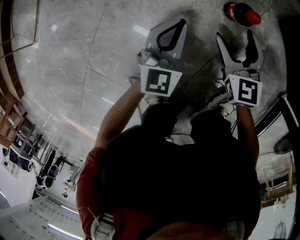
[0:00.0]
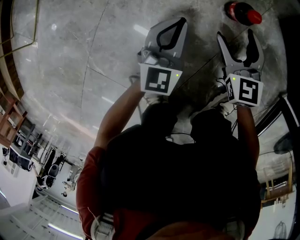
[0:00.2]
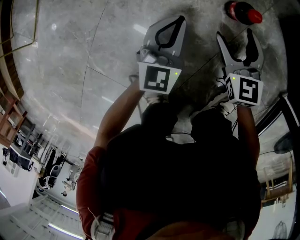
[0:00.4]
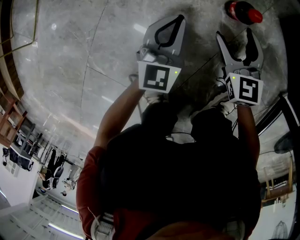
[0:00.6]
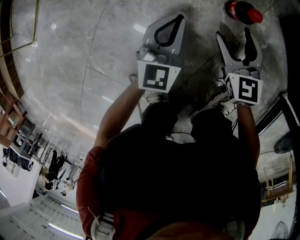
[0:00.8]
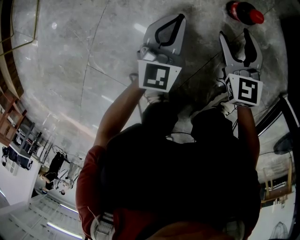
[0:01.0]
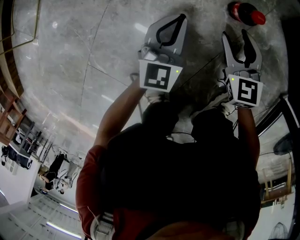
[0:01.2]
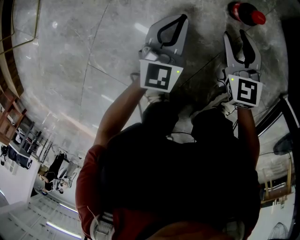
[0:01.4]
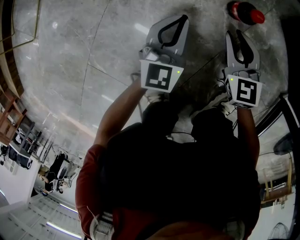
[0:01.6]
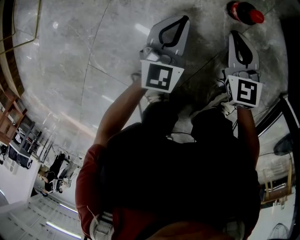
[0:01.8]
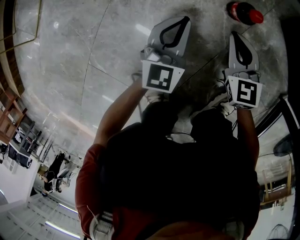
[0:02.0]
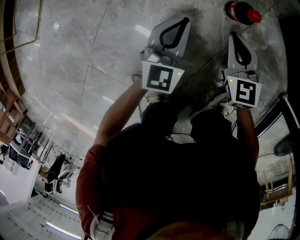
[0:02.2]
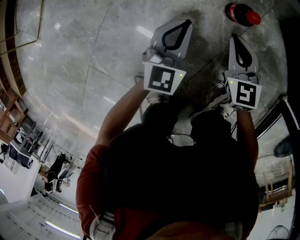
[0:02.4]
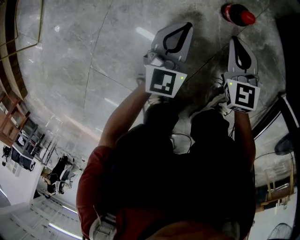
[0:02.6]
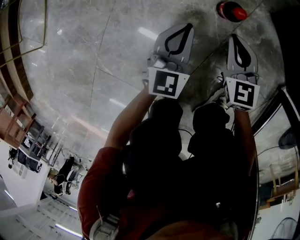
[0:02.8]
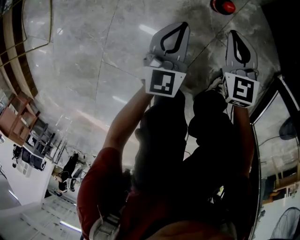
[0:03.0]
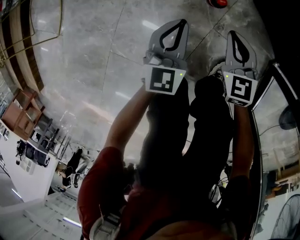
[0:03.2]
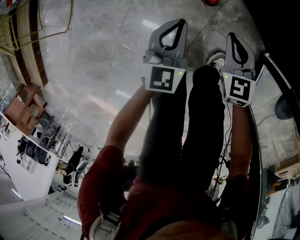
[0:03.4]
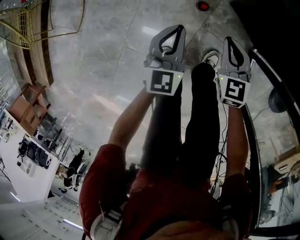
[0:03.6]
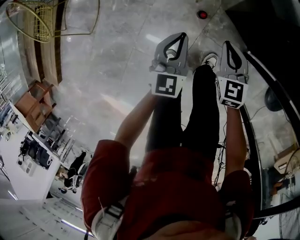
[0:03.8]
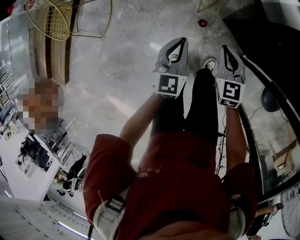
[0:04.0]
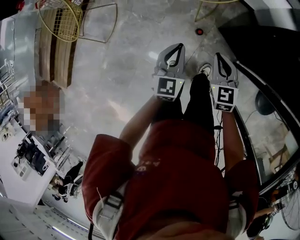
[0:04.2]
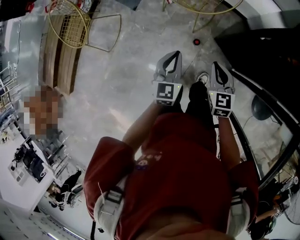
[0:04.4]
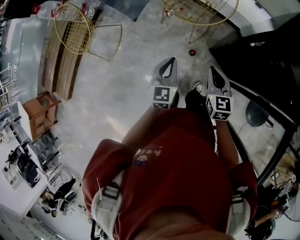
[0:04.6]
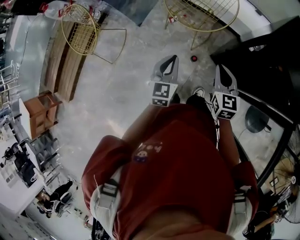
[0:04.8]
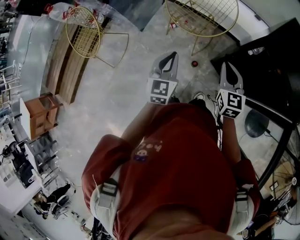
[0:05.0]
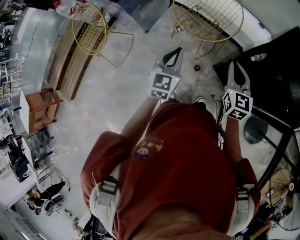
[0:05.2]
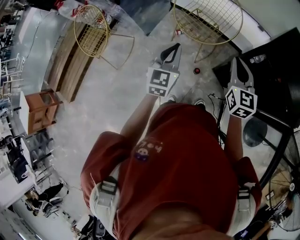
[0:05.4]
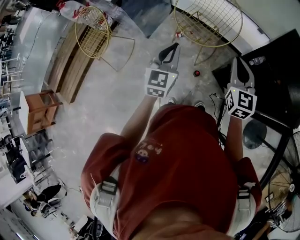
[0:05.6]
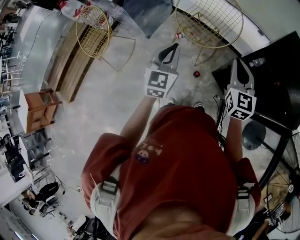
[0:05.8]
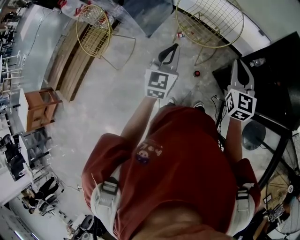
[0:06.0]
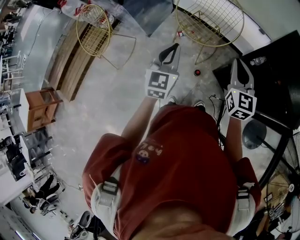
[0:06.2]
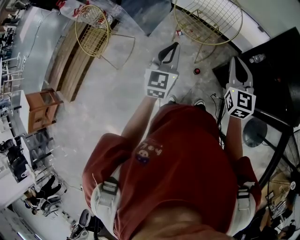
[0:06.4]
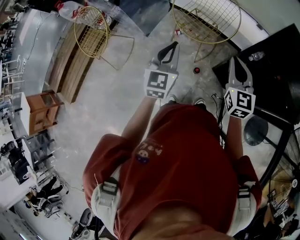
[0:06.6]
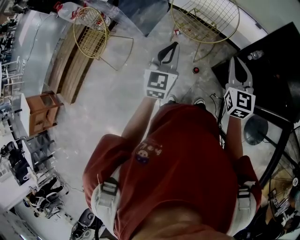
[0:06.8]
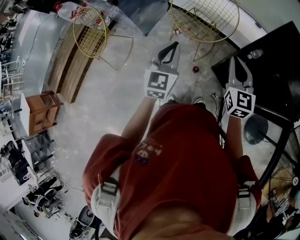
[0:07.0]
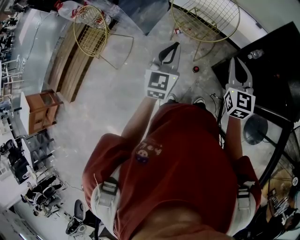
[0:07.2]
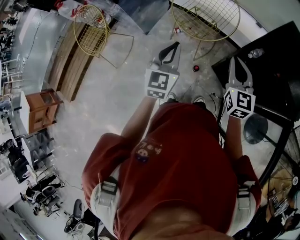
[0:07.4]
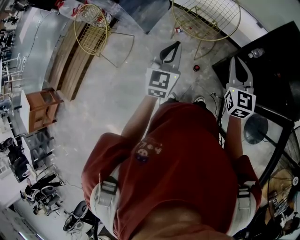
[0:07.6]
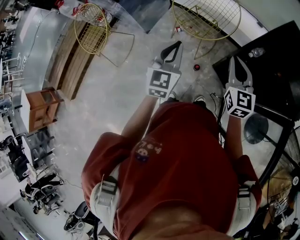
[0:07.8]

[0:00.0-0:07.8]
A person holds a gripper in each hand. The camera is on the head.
0:00.0 to 0:01.6: The right gripper closes up.
0:01.6 to 0:03.2: Both grippers move upward, some 20 cm.
0:03.2 to 0:04.6: Both grippers move upward, roughly 60 cm.
0:04.6 to 0:06.2: The two grippers go roughly 15 cm upward.
0:06.2 to 0:07.8: The grippers stay close to where they were, moving slightly.

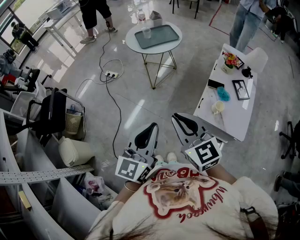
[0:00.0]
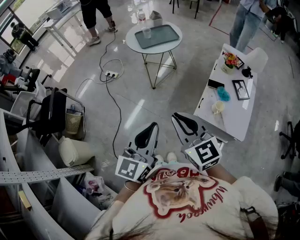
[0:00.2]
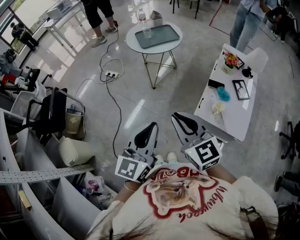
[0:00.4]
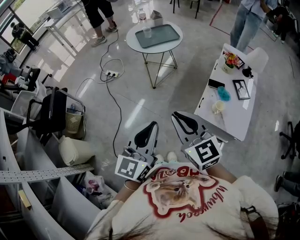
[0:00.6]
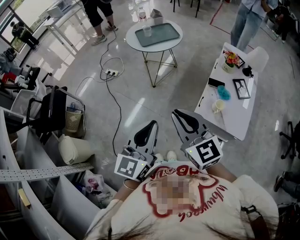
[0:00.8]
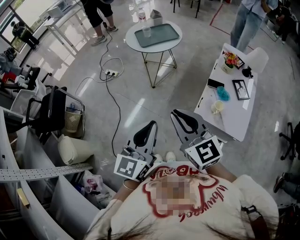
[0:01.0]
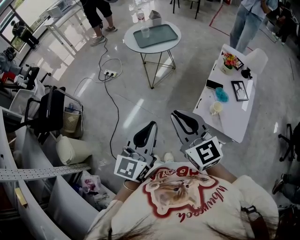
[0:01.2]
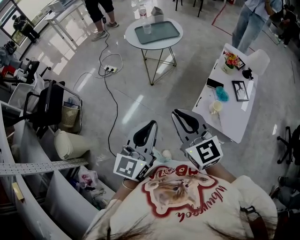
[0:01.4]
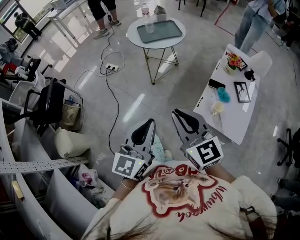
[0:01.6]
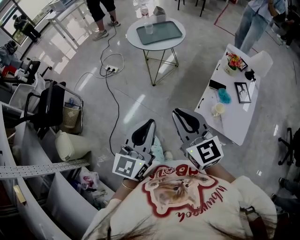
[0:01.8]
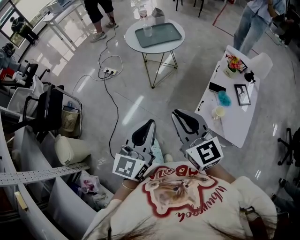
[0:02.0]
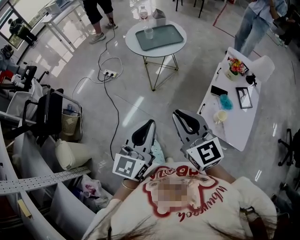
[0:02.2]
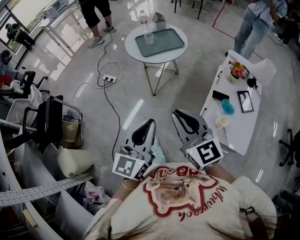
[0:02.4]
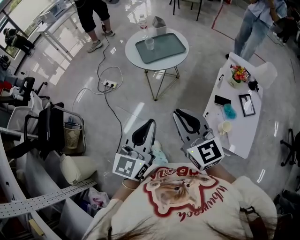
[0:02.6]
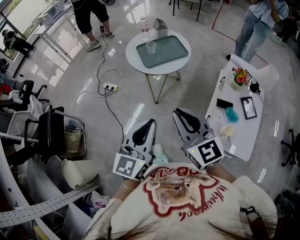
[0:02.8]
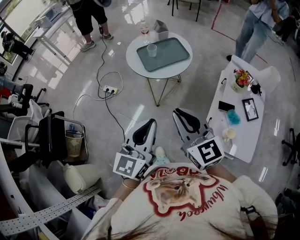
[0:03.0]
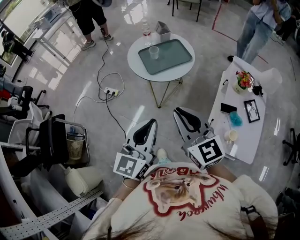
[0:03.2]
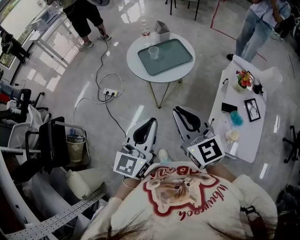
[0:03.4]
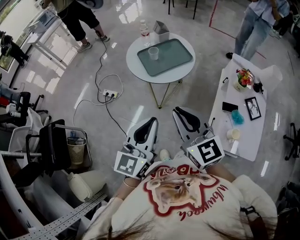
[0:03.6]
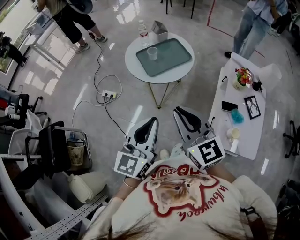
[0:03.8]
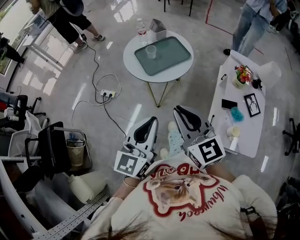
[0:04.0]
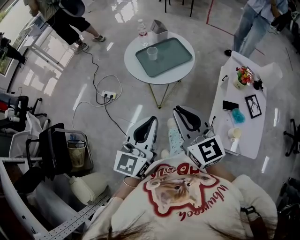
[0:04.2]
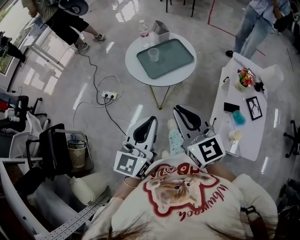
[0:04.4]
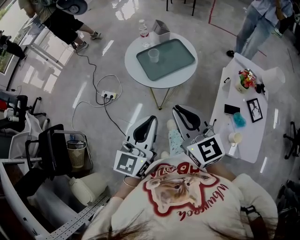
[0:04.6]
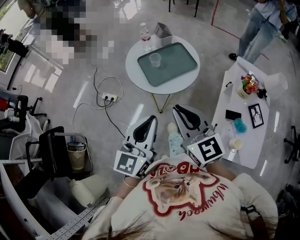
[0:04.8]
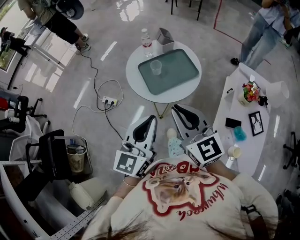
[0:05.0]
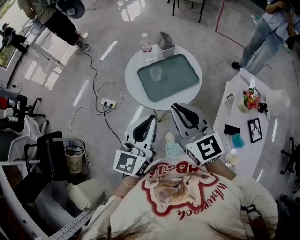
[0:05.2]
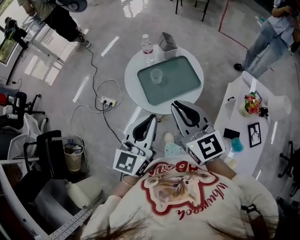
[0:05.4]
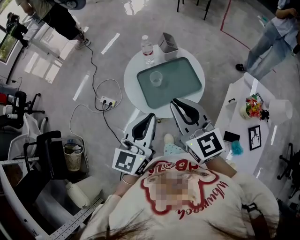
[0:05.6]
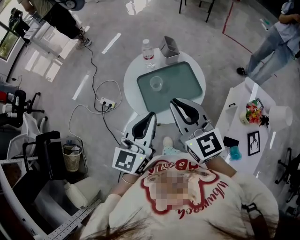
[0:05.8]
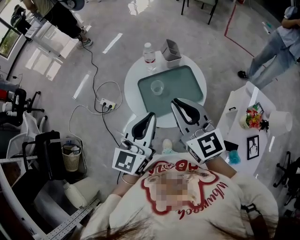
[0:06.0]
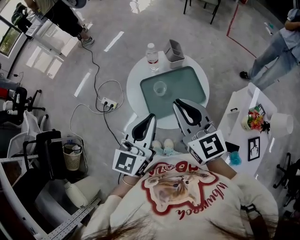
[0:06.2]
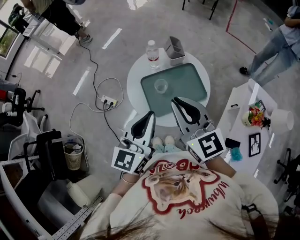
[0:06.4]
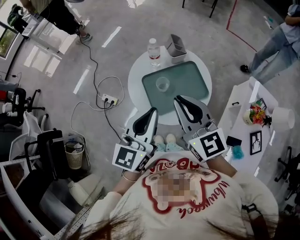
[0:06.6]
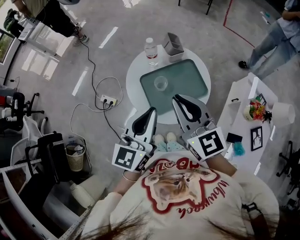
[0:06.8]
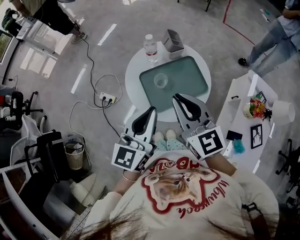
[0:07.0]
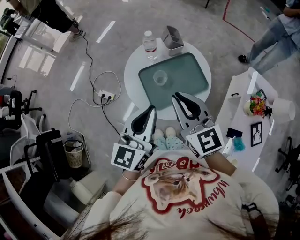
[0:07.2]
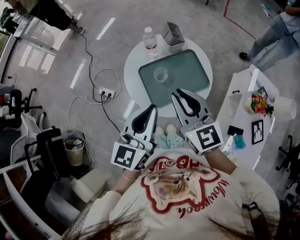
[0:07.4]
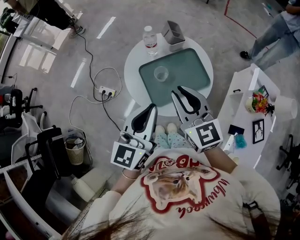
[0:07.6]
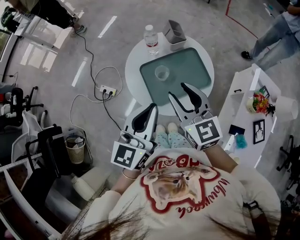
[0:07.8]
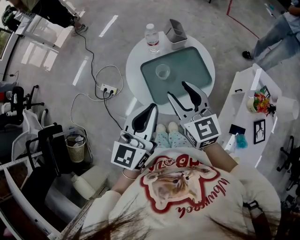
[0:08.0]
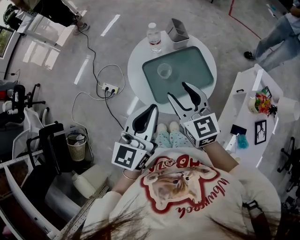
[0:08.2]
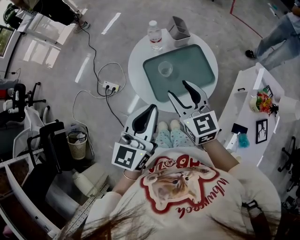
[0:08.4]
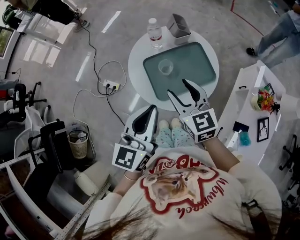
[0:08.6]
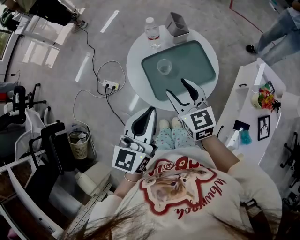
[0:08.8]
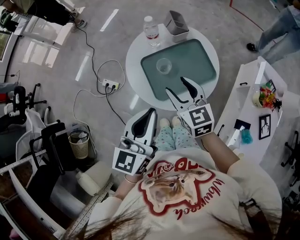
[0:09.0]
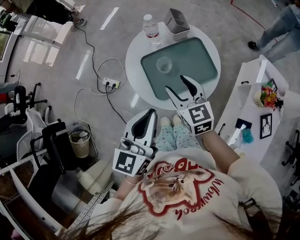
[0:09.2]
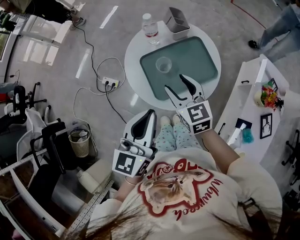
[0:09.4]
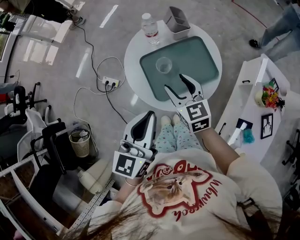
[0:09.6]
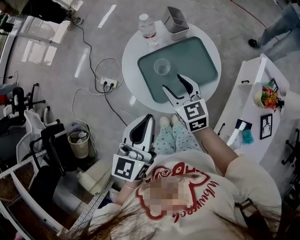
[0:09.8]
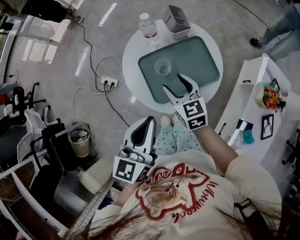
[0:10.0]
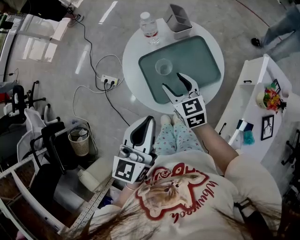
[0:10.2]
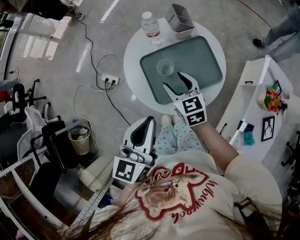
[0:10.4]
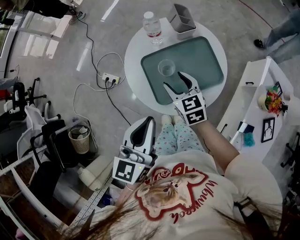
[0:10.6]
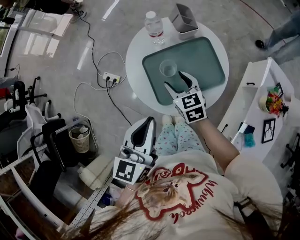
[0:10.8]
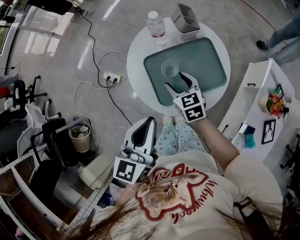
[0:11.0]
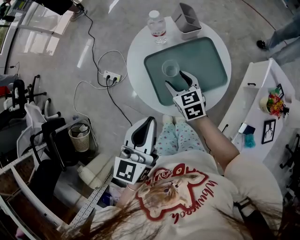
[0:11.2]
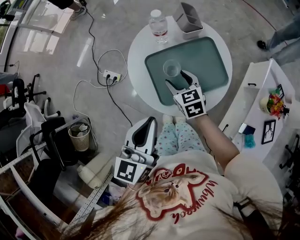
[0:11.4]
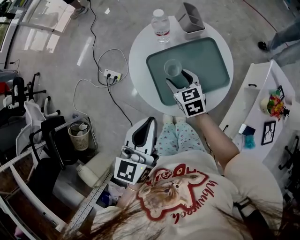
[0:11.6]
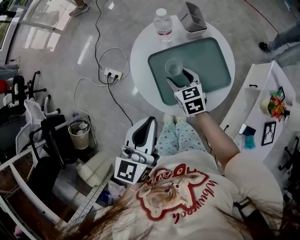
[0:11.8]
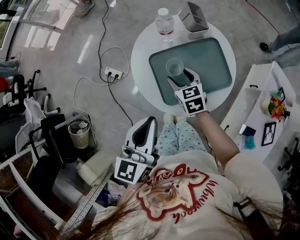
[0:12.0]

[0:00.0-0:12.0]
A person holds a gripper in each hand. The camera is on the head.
0:00.0 to 0:01.6: There are only small adjustments of the grippers.
0:01.6 to 0:03.0: Both grippers travel together forward, approximately 25 cm.
0:03.0 to 0:04.4: The grippers both shift forward by roughly 10 cm.
0:04.4 to 0:06.0: Both grippers move forward, roughly 25 cm.
0:06.0 to 0:07.6: The right gripper shifts roughly 5 cm downward.
0:07.6 to 0:09.0: The right gripper travels downward by approximately 10 cm, and opens up.
0:09.0 to 0:10.4: The right gripper moves downward, roughly 10 cm.
0:10.4 to 0:12.0: The right gripper heads downward, covering roughly 5 cm.

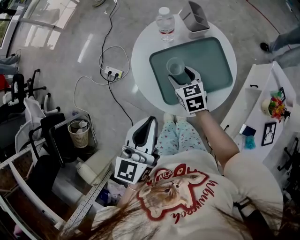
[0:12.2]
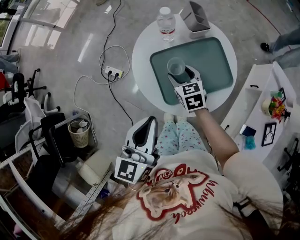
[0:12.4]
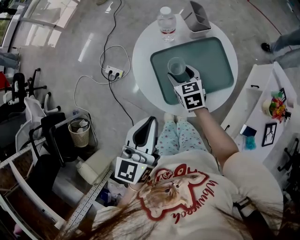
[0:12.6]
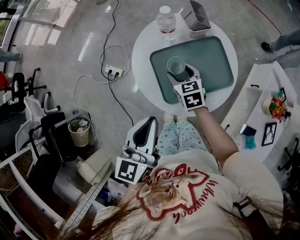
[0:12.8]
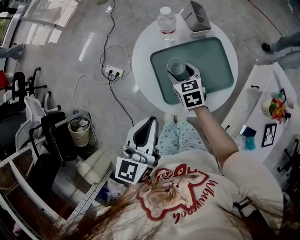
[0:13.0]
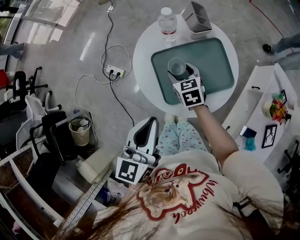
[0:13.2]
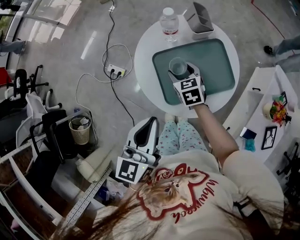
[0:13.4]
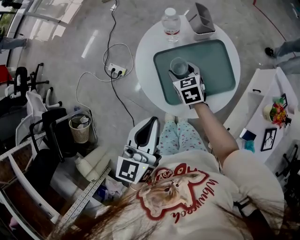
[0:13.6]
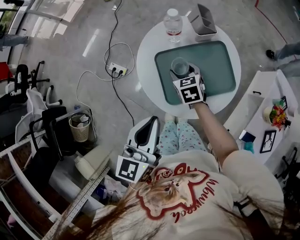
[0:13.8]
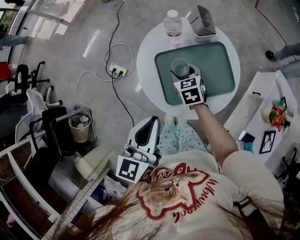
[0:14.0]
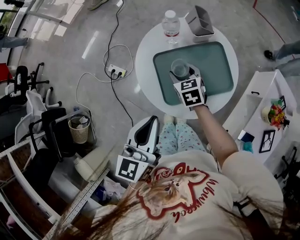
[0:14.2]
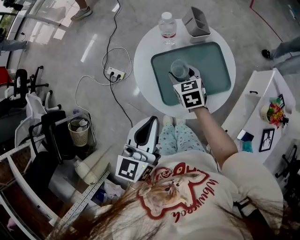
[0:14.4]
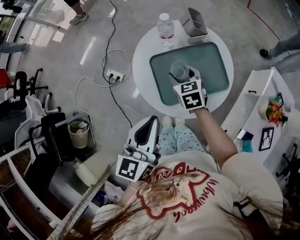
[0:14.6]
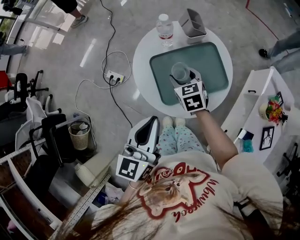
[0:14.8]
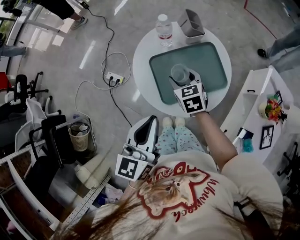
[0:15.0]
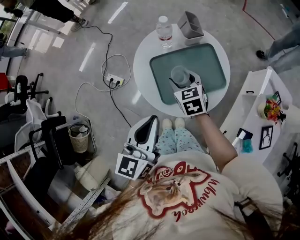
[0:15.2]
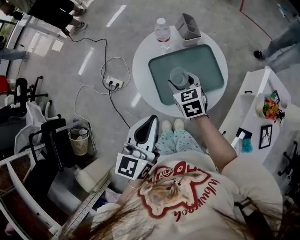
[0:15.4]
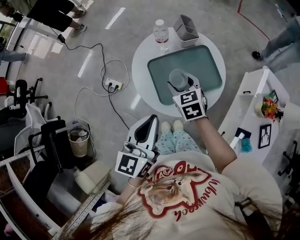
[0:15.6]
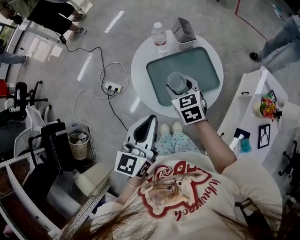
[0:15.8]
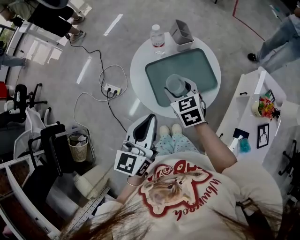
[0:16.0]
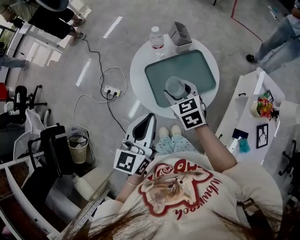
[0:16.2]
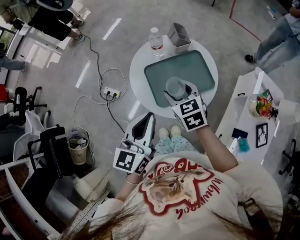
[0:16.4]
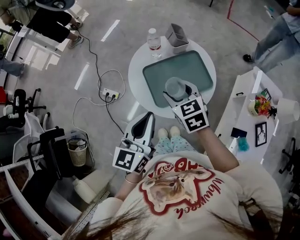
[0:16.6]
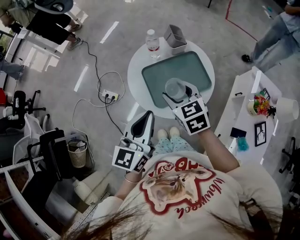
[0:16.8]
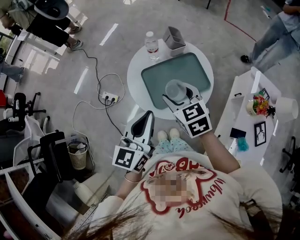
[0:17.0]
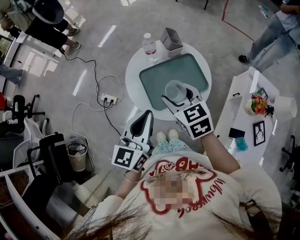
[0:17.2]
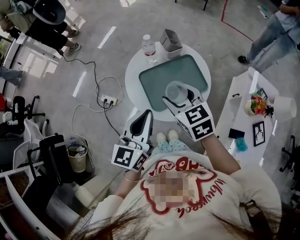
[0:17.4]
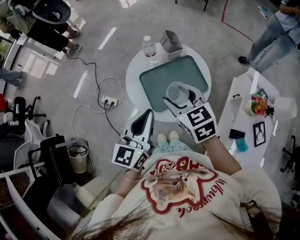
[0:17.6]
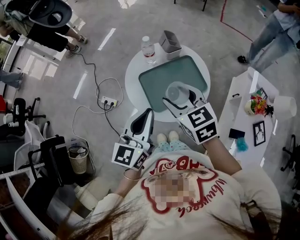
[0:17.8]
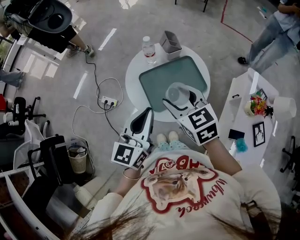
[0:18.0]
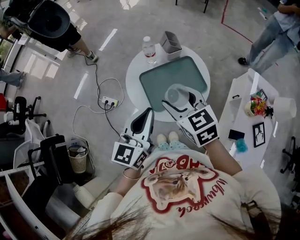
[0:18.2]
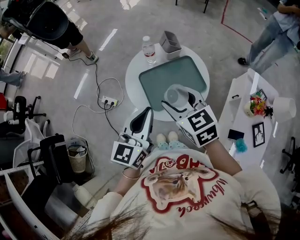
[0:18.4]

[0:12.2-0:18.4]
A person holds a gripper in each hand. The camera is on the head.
0:12.2 to 0:13.8: The grippers move only a little.
0:13.8 to 0:15.4: The right gripper heads upward, covering approximately 10 cm.
0:15.4 to 0:16.8: The right gripper travels upward and backward by about 10 cm.
0:16.8 to 0:18.4: The right gripper heads upward, covering roughly 5 cm.
